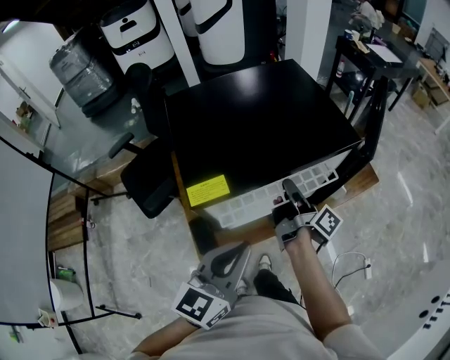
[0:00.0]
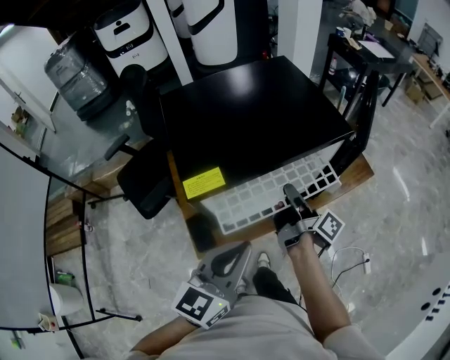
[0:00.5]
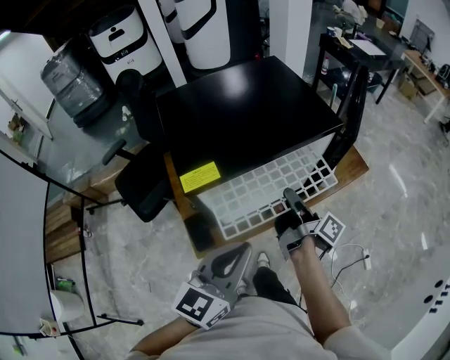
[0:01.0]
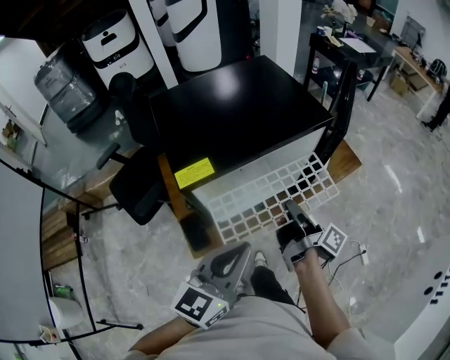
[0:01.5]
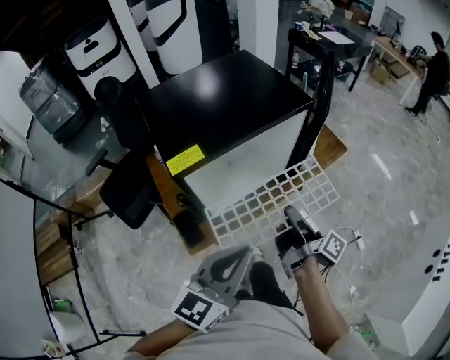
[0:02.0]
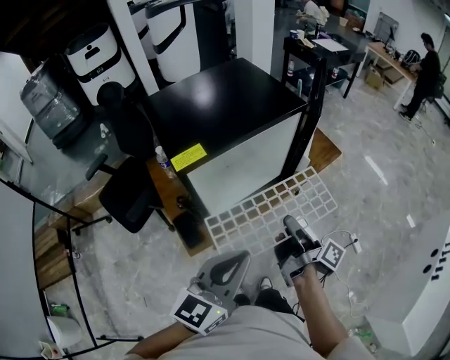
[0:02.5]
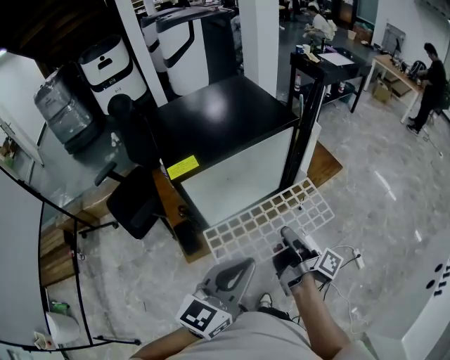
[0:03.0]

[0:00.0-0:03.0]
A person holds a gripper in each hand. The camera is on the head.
0:00.0 to 0:01.5: The left gripper ends up about 5 cm from where it was.
0:01.5 to 0:03.0: The left gripper shifts by approximately 10 cm.

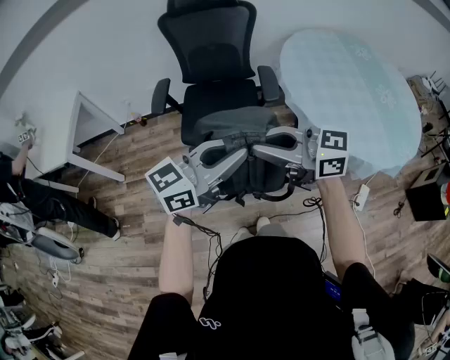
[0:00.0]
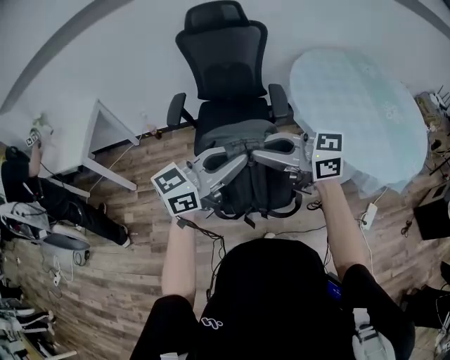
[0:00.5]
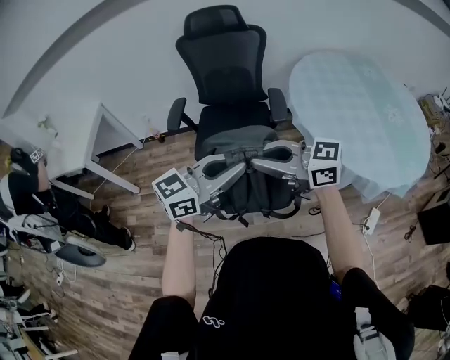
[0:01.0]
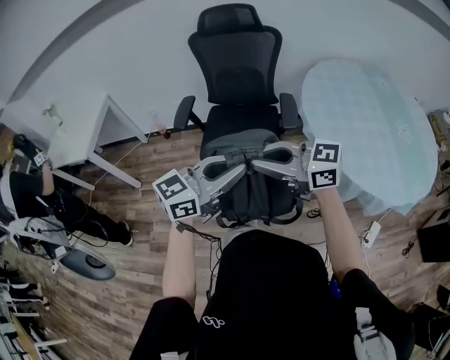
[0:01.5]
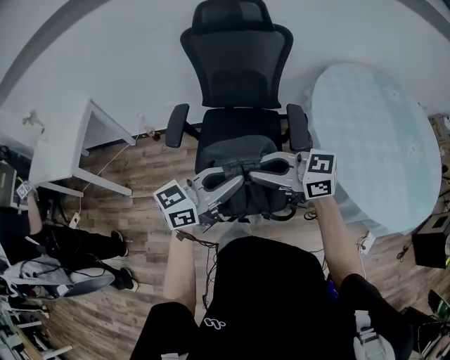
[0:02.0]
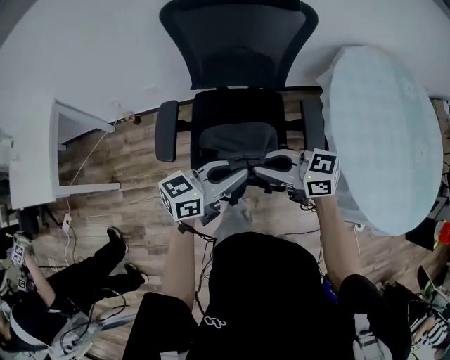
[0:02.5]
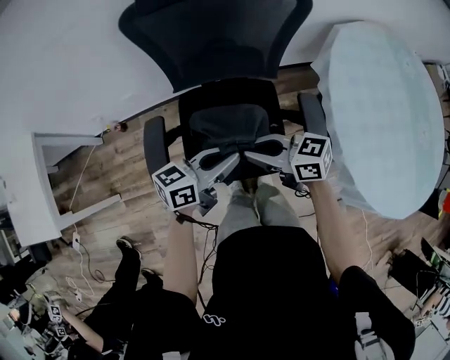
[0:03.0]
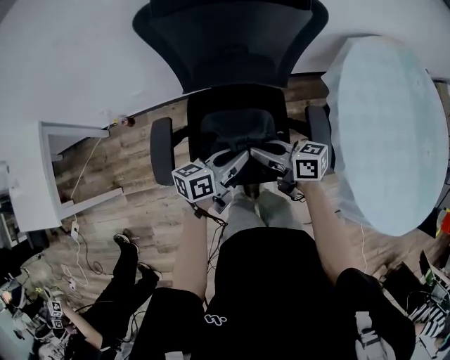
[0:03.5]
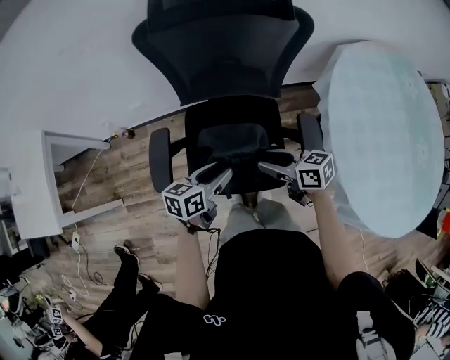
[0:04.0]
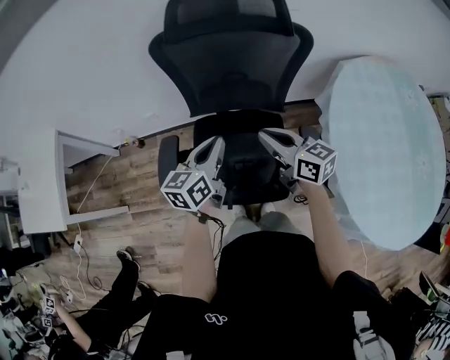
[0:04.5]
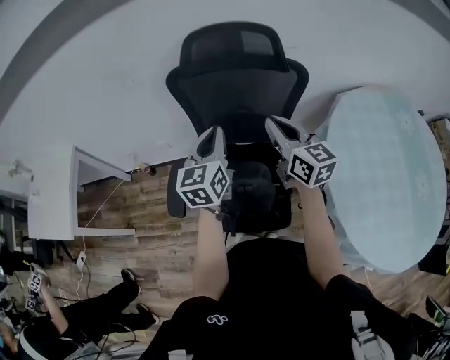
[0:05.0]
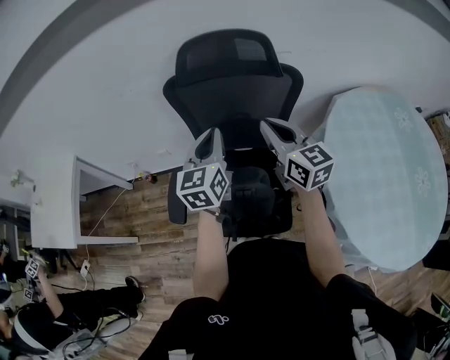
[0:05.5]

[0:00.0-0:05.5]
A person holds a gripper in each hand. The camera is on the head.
0:00.0 to 0:02.0: The left gripper changes place by some 20 cm, while the right gripper moves roughly 20 cm.
0:02.0 to 0:03.5: The right gripper changes place by roughly 40 cm, and rotates about 40 degrees; the left gripper moves about 40 cm, and rotates roughly 40 degrees.
0:03.5 to 0:05.5: The left gripper heads upward and forward, covering approximately 25 cm, changes its angle by some 60 degrees, and opens, then closes once more; the right gripper moves upward, roughly 25 cm, changes its angle by roughly 50 degrees, and opens and closes again.

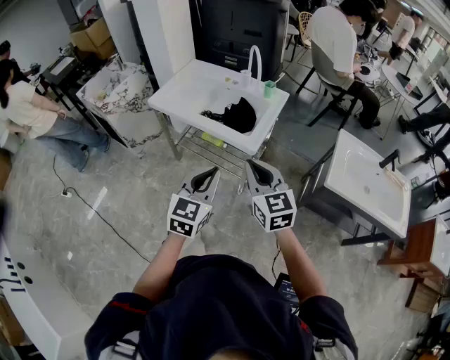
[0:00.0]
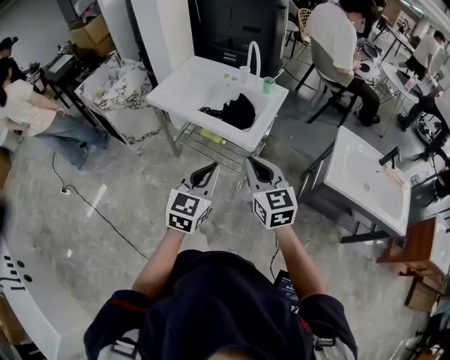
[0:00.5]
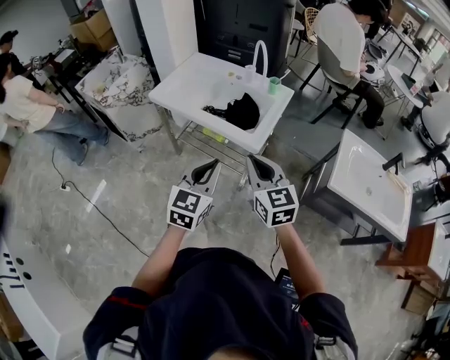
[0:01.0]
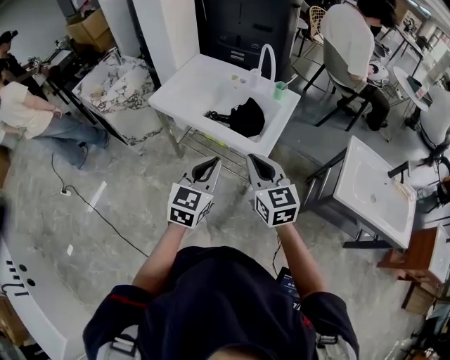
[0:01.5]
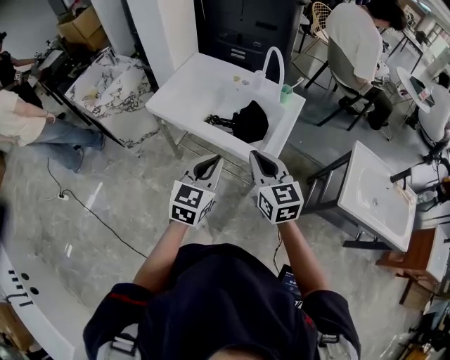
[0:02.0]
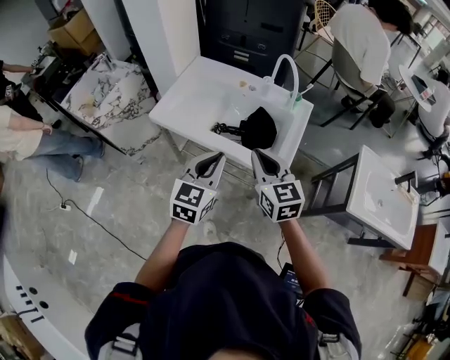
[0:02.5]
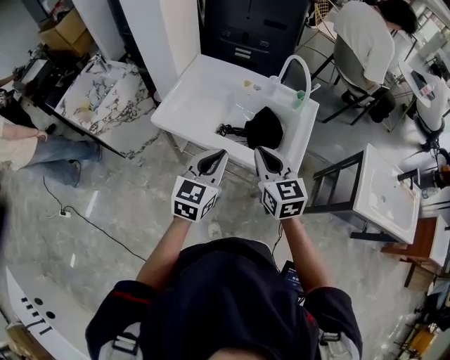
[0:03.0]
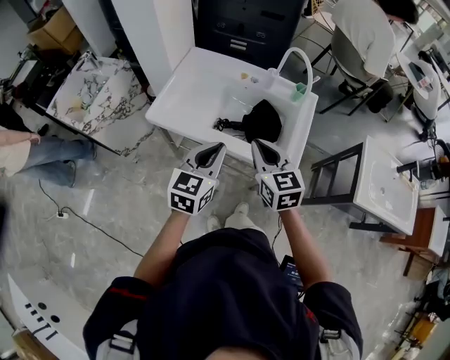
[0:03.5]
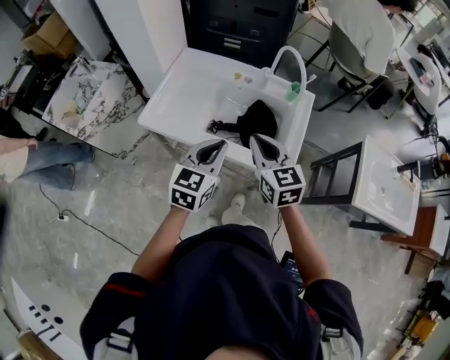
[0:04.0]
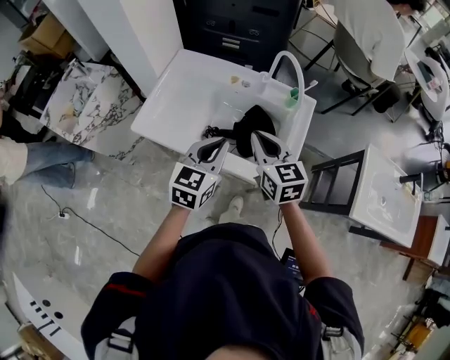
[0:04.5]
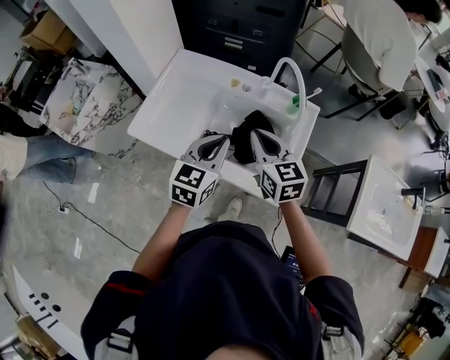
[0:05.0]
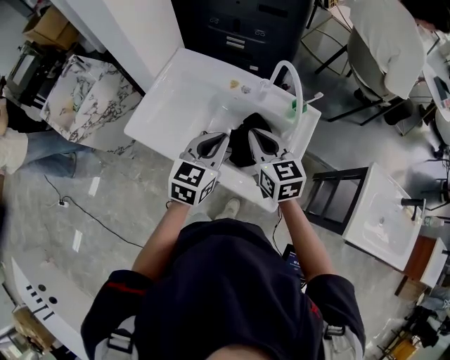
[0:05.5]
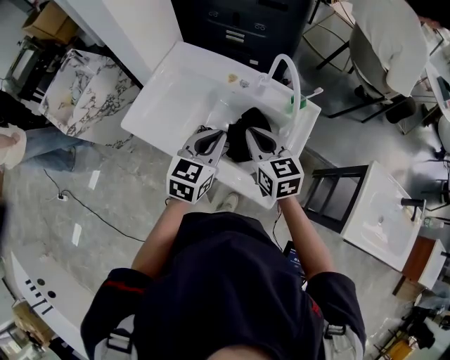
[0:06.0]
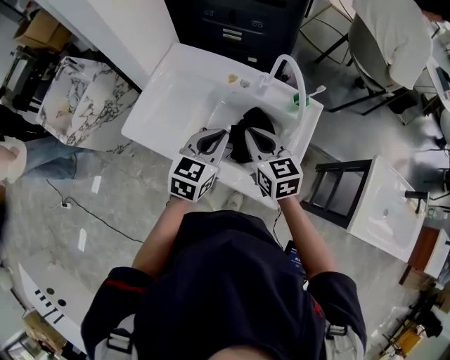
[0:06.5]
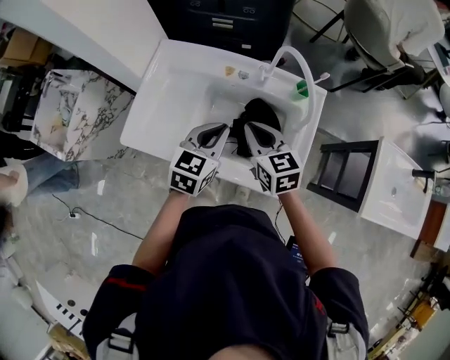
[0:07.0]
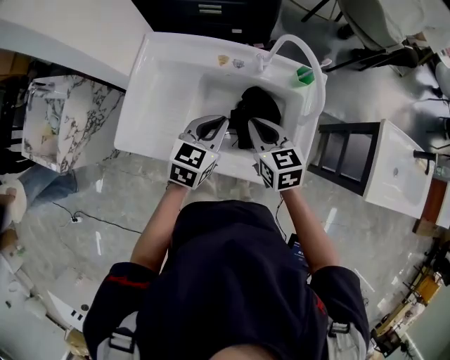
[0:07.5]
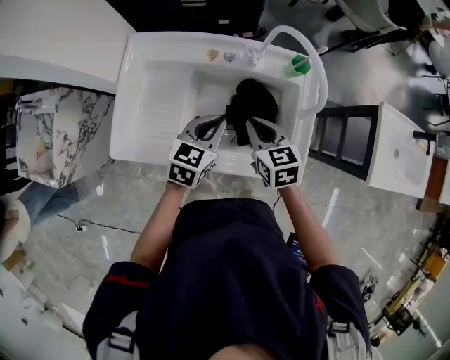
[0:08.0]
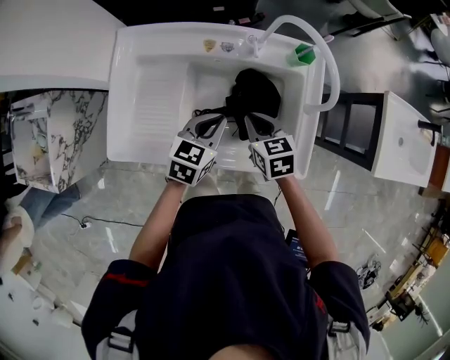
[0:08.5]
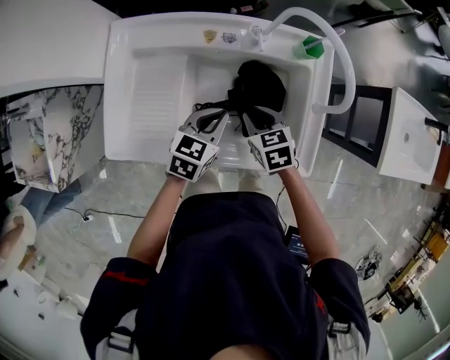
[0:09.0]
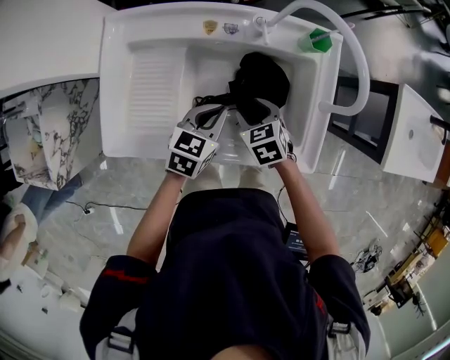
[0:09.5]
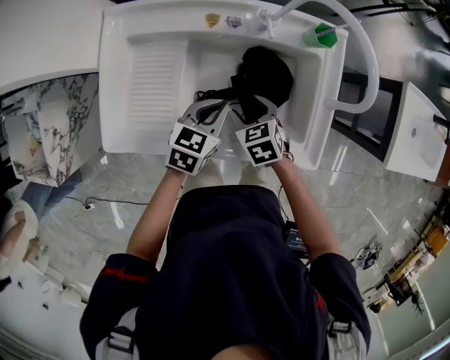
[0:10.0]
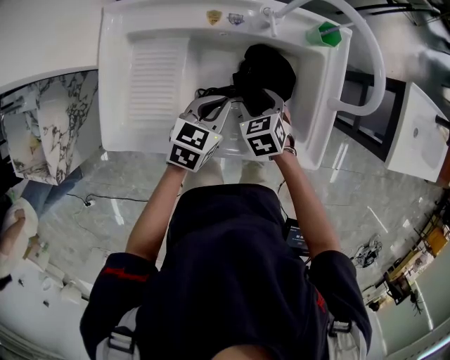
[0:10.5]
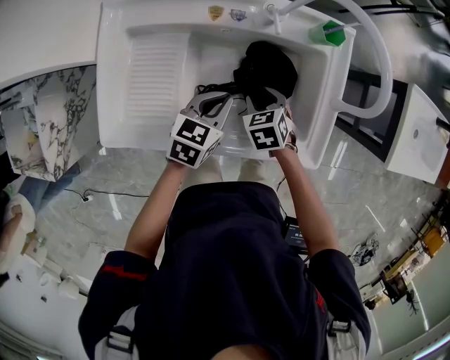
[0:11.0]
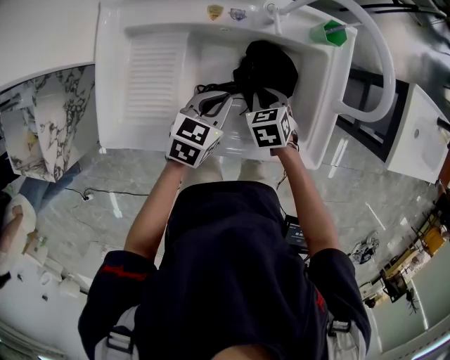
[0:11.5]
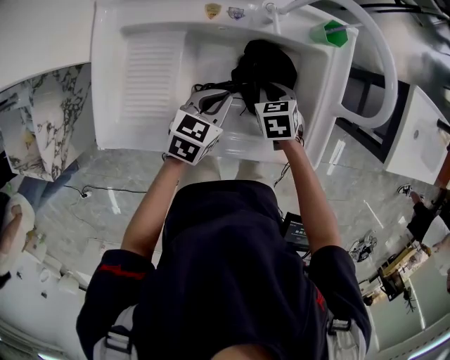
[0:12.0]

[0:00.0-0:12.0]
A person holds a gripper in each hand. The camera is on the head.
0:00.0 to 0:02.0: The grippers both shift forward by roughly 15 cm.
0:02.0 to 0:04.0: The grippers both shift forward and to the left by roughly 15 cm.
0:04.0 to 0:06.0: The left gripper travels forward and to the right by roughly 15 cm, while the right gripper heads forward, to the right and downward, covering roughly 15 cm.
0:06.0 to 0:08.0: The right gripper shifts about 10 cm downward, and swivels some 20 degrees. Meanwhile the left gripper shifts approximately 10 cm downward and forward, and turns by roughly 30 degrees.
0:08.0 to 0:10.0: The left gripper heads downward, covering approximately 10 cm. Meanwhile the right gripper shifts approximately 15 cm downward, turns by about 20 degrees, and opens its fingers.
0:10.0 to 0:12.0: The right gripper moves to the right and forward, roughly 10 cm, and closes.

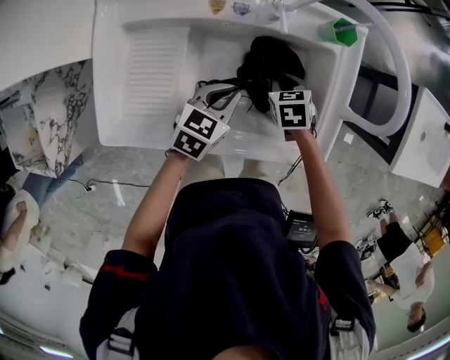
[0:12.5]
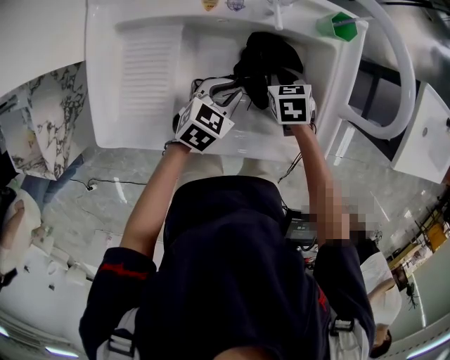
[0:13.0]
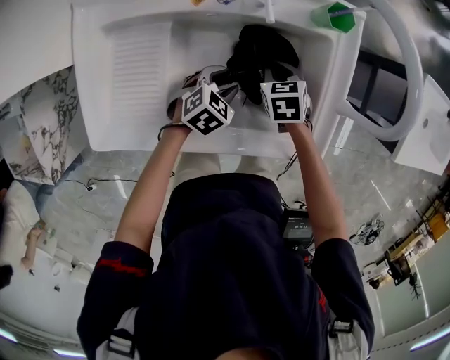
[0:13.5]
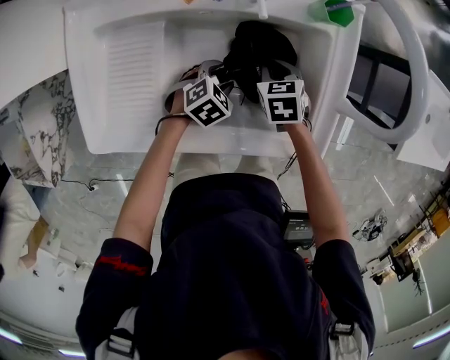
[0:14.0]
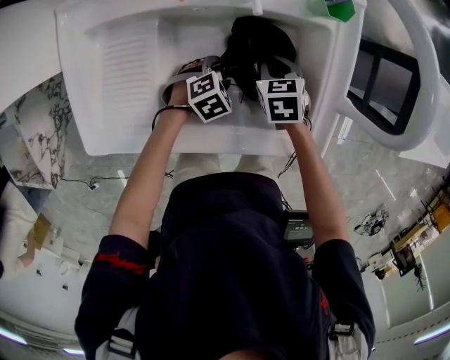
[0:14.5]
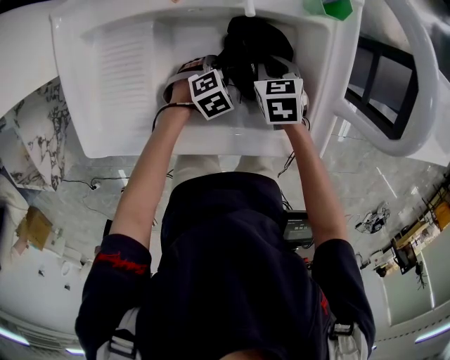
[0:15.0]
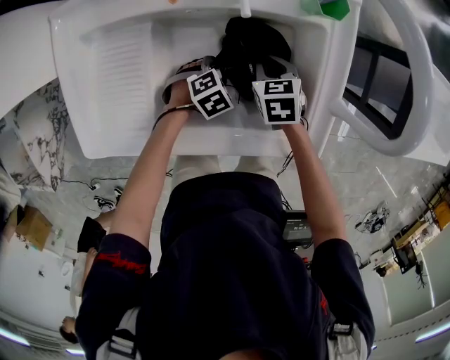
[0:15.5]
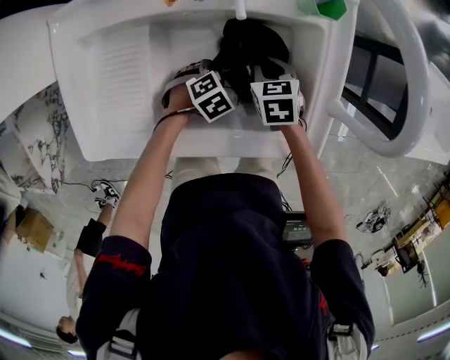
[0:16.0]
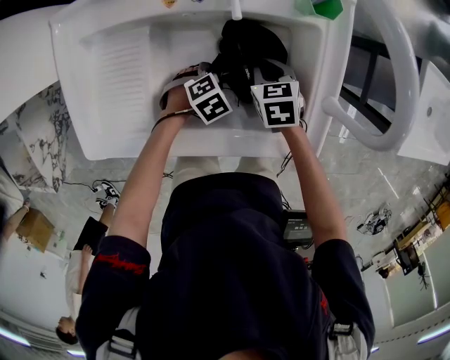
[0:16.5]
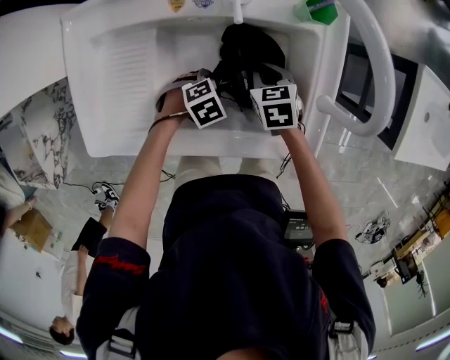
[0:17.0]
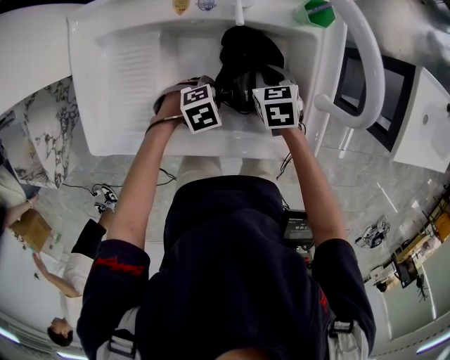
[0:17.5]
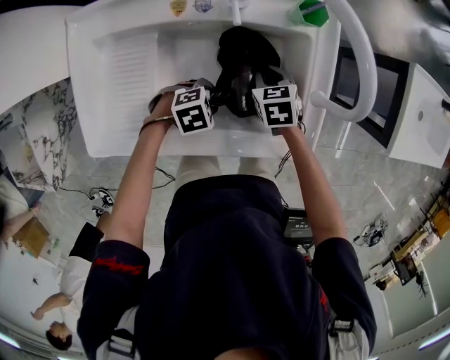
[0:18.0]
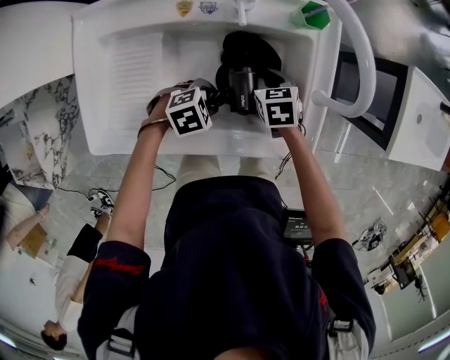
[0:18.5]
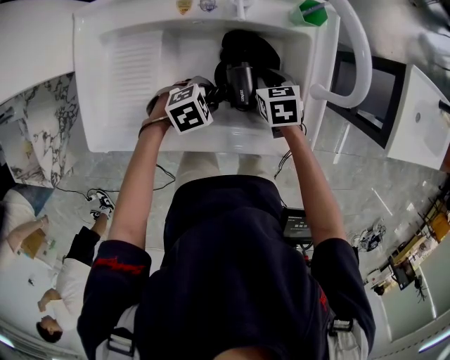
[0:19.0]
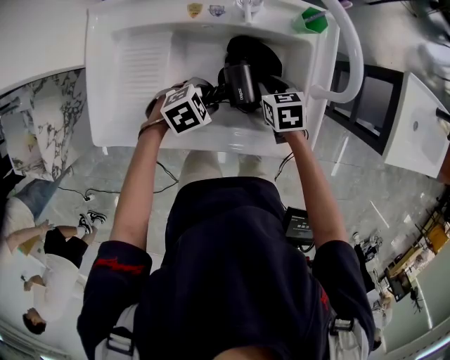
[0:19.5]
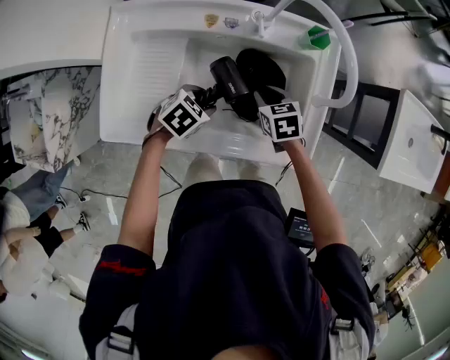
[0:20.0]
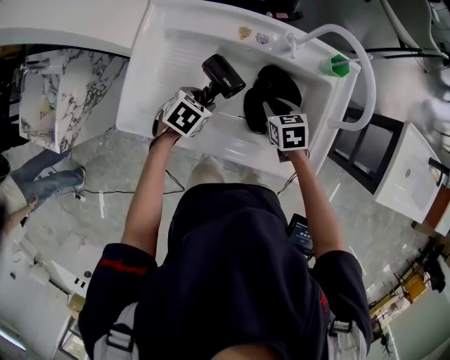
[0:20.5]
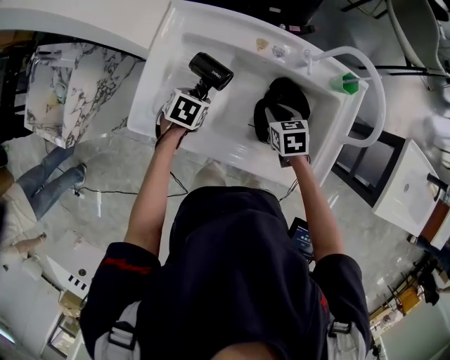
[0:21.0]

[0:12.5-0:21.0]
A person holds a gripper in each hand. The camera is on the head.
0:12.5 to 0:14.5: The left gripper travels downward by about 15 cm, turns by about 40 degrees, and opens up.
0:14.5 to 0:16.5: The grippers make only small movements.
0:16.5 to 0:19.0: The left gripper moves upward, some 10 cm.
0:19.0 to 0:21.0: The left gripper ends up roughly 20 cm from where it was, and rolls counterclockwise, seen from behind, by approximately 50 degrees. The right gripper moves some 10 cm.
